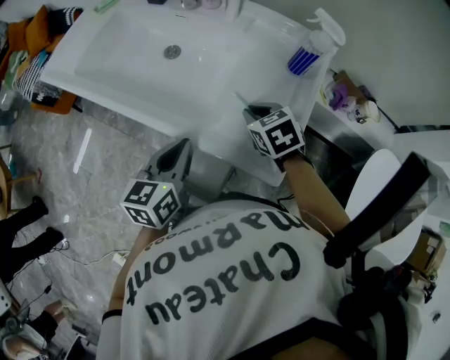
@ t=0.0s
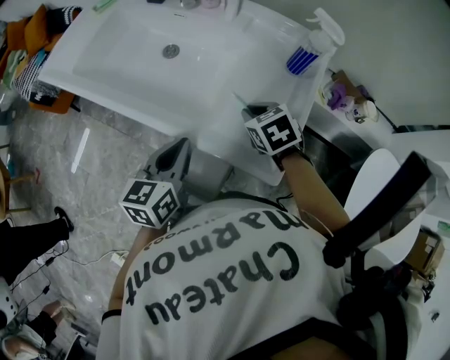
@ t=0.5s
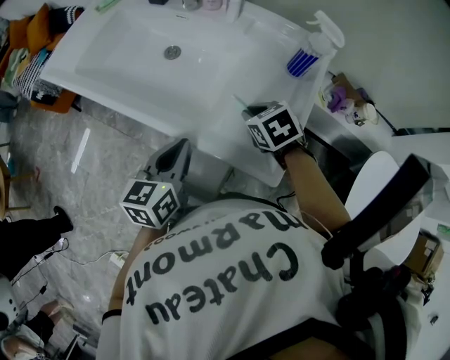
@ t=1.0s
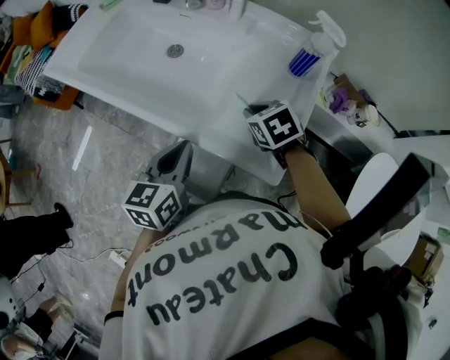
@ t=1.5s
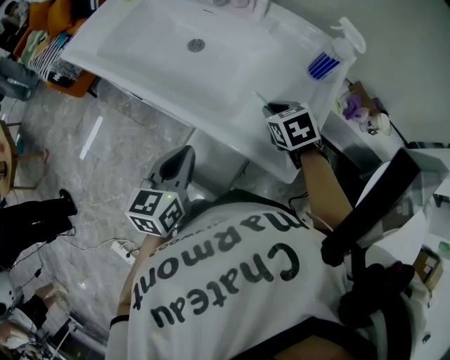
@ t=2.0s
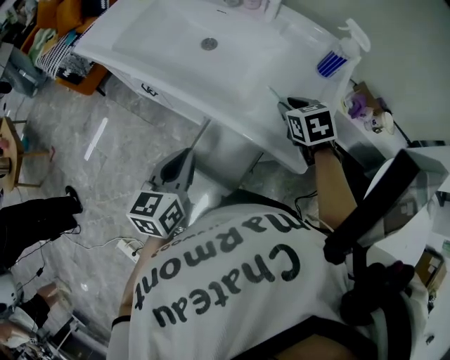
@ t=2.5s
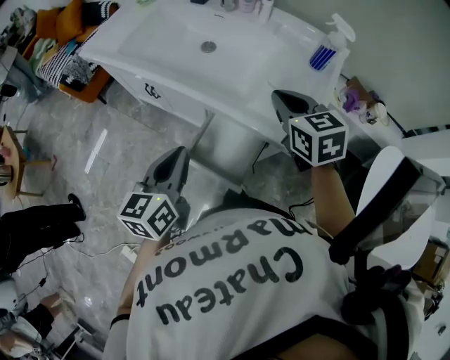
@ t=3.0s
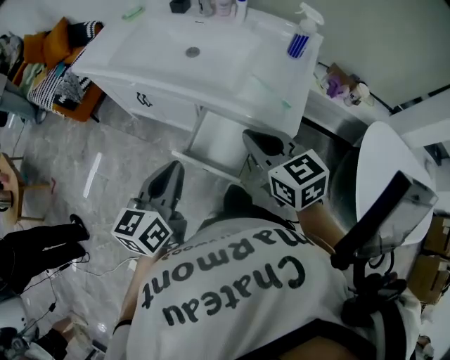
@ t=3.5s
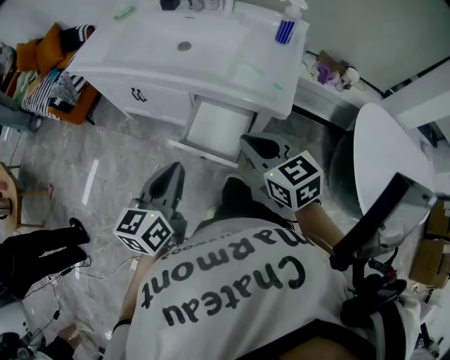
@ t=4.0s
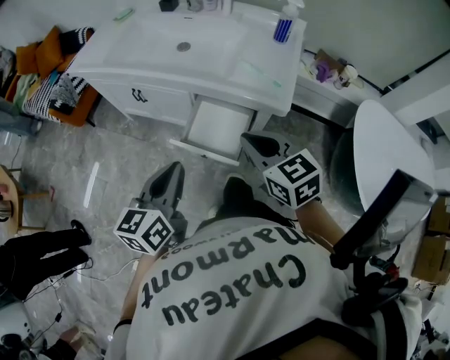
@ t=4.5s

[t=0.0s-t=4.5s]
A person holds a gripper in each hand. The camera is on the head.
t=0.0s to t=2.0s: The left gripper moves roughly 5 cm.
t=2.0s to t=4.5s: The left gripper travels backward and to the left by about 20 cm. Meanwhile the right gripper is displaced backward, upward and to the left by some 35 cm, and swivels roughly 30 degrees.

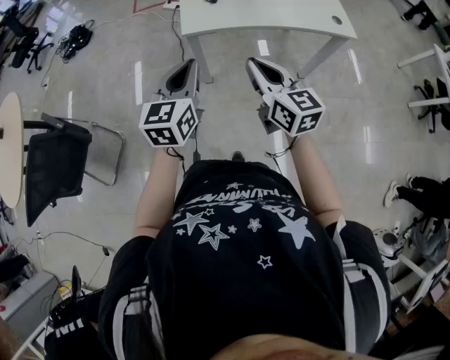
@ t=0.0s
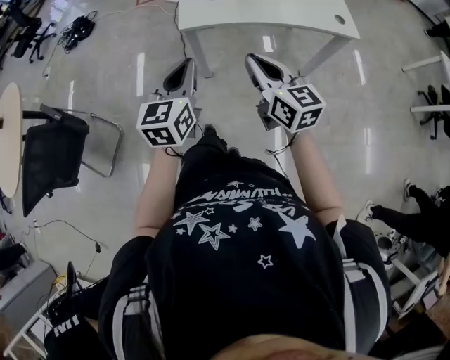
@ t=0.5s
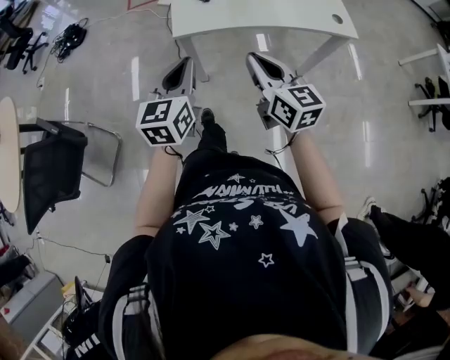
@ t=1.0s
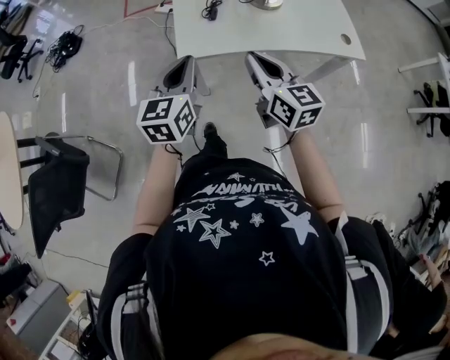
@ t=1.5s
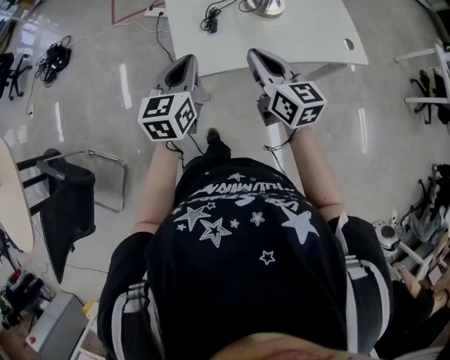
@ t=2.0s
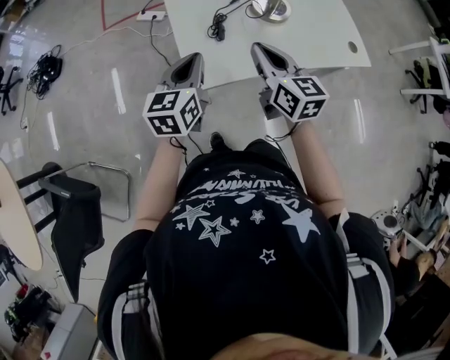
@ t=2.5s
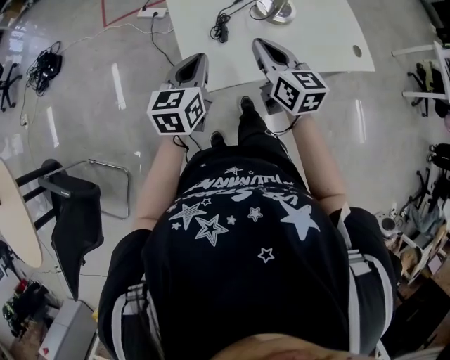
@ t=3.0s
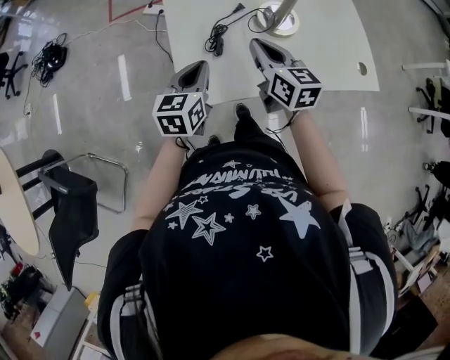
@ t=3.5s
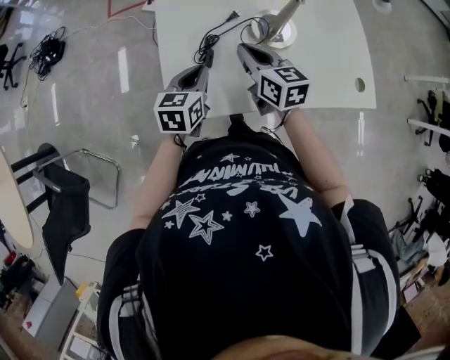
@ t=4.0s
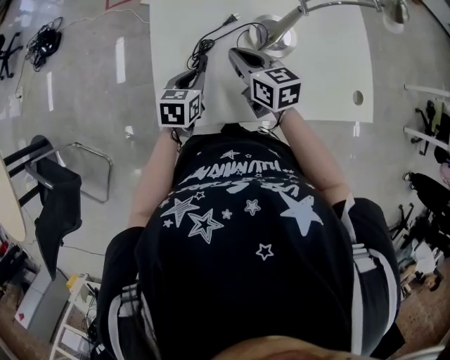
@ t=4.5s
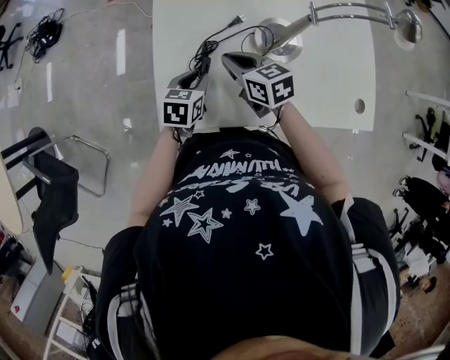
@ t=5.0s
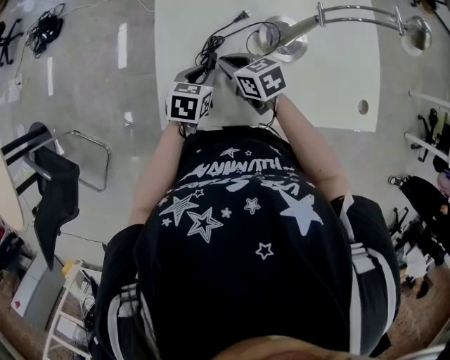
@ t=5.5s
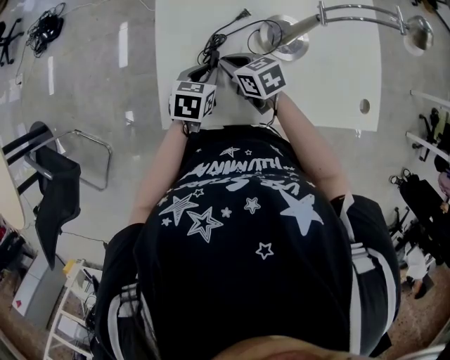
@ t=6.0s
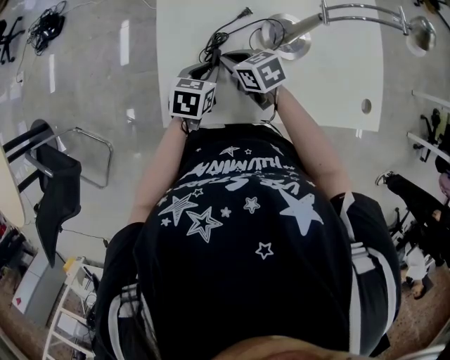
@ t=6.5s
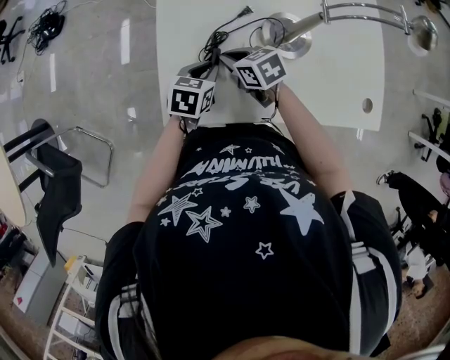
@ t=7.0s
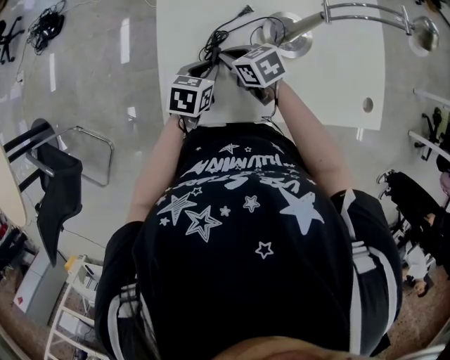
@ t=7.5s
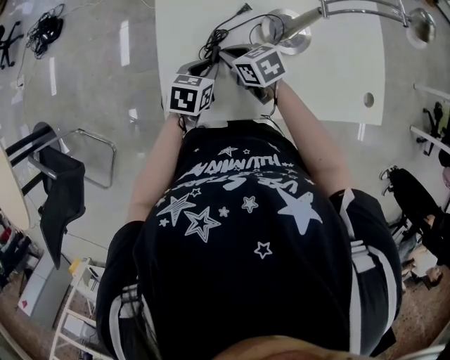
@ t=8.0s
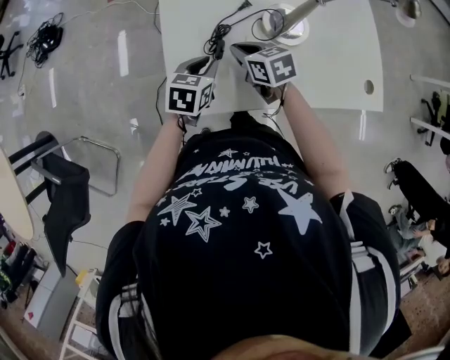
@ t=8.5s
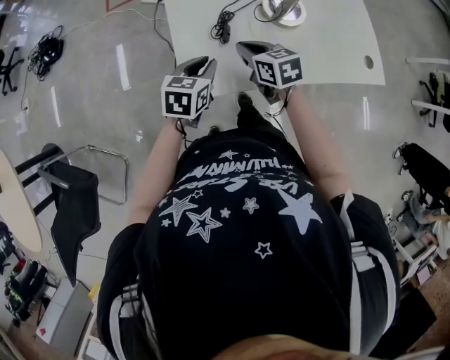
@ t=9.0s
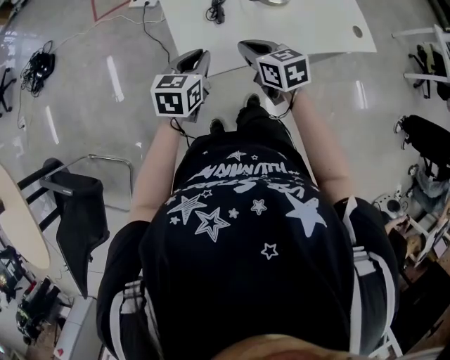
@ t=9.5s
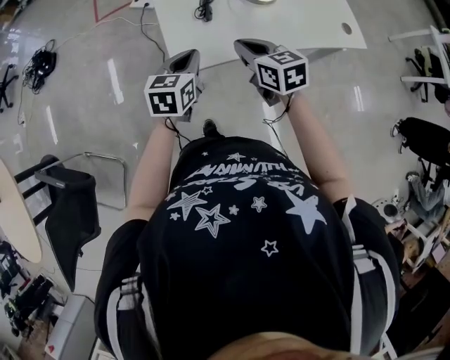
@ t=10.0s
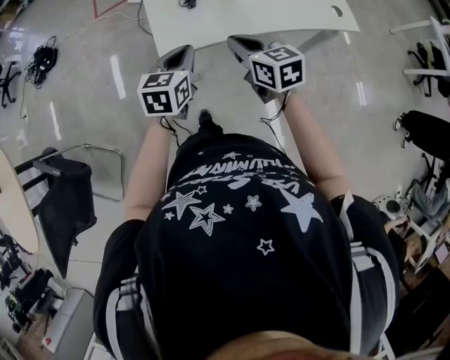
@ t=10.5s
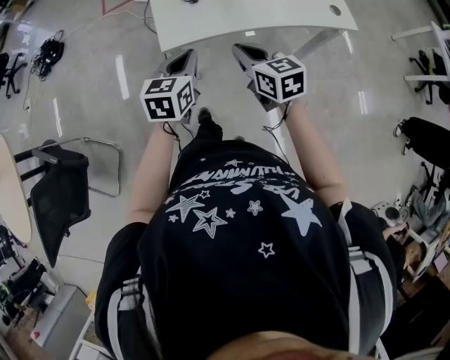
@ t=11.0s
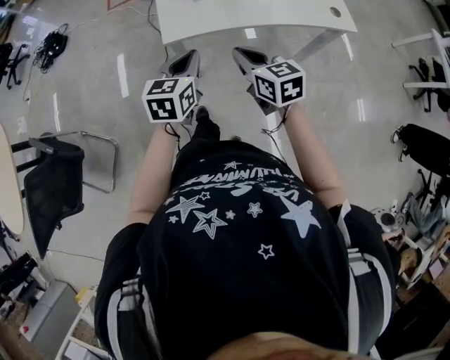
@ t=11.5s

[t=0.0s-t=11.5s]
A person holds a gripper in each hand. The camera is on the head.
t=0.0s to t=2.0s: The grippers both shift forward by about 25 cm.
t=2.0s to t=4.0s: The left gripper is displaced forward and downward by about 20 cm. Meanwhile the right gripper goes roughly 20 cm forward.
t=4.0s to t=6.0s: The two grippers go about 10 cm downward. The right gripper swivels about 30 degrees.
t=6.0s to t=7.5s: The grippers make only small movements.
t=7.5s to t=9.5s: The left gripper heads backward, to the left and upward, covering roughly 20 cm, and turns by about 20 degrees. The right gripper shifts roughly 20 cm backward and upward, and turns by some 30 degrees.
t=9.5s to t=11.5s: Both grippers move backward, some 20 cm.

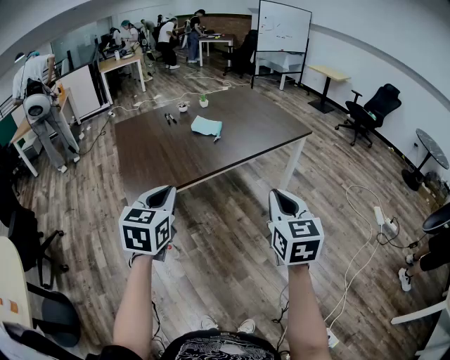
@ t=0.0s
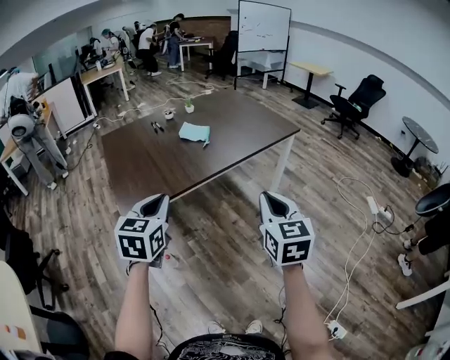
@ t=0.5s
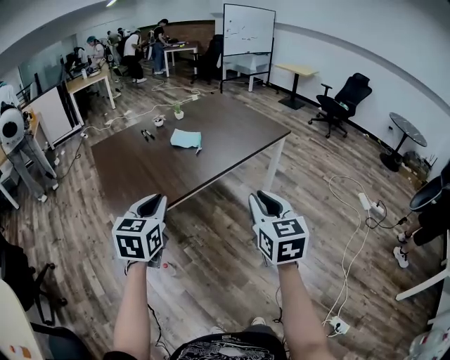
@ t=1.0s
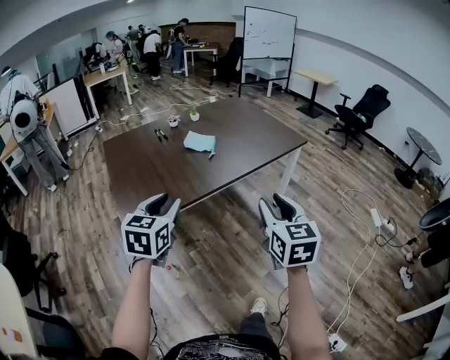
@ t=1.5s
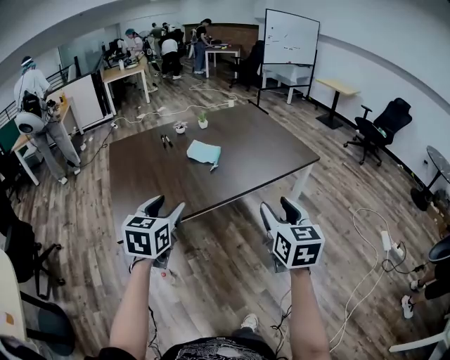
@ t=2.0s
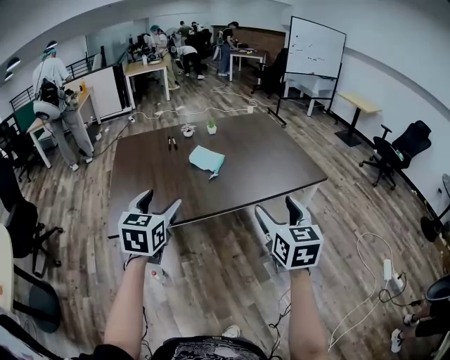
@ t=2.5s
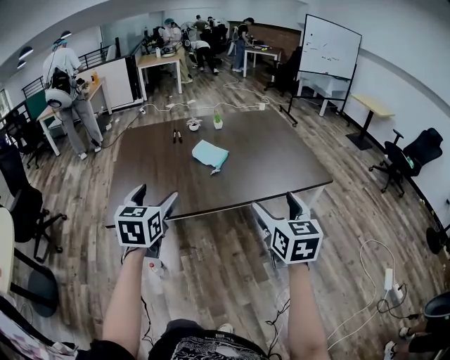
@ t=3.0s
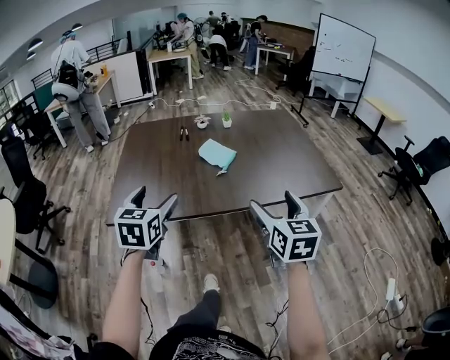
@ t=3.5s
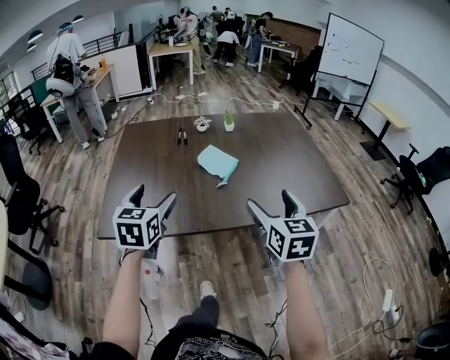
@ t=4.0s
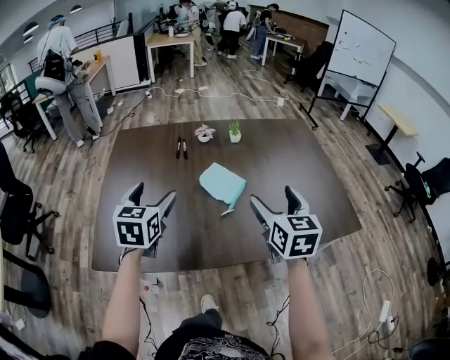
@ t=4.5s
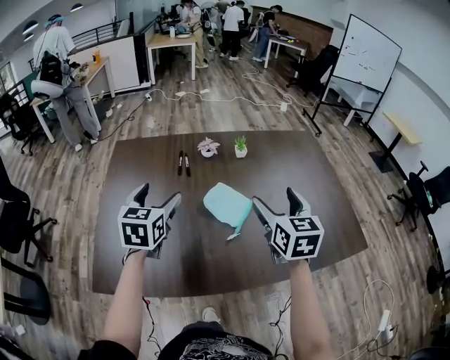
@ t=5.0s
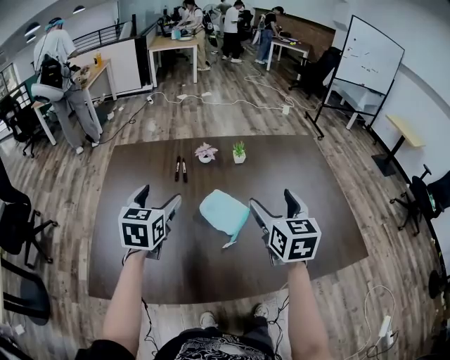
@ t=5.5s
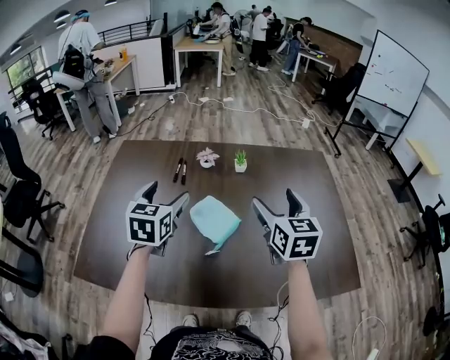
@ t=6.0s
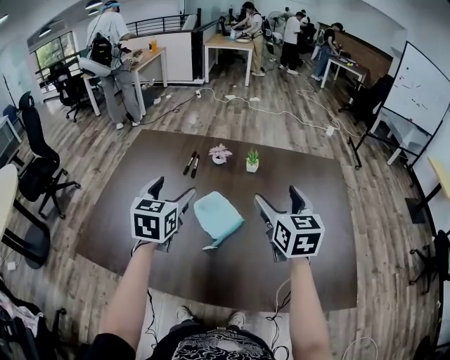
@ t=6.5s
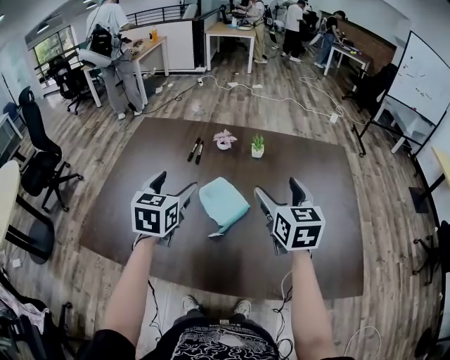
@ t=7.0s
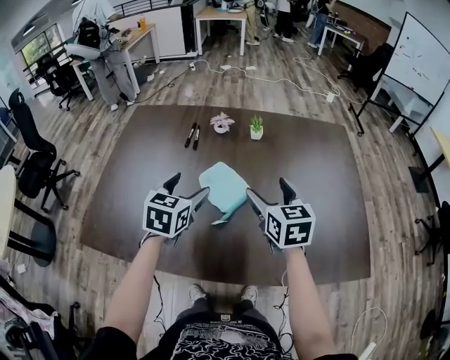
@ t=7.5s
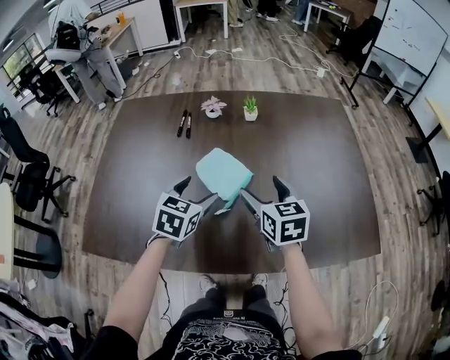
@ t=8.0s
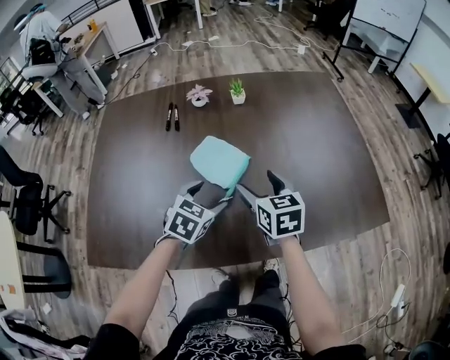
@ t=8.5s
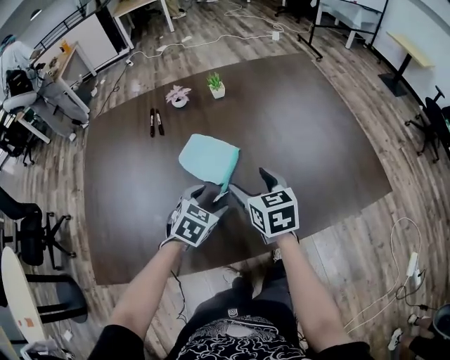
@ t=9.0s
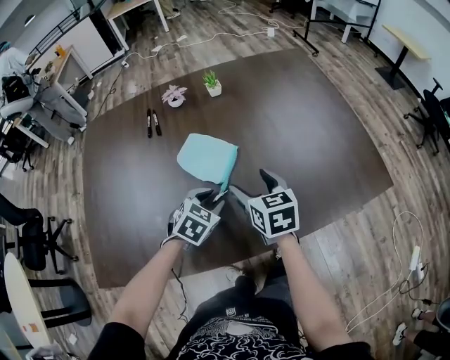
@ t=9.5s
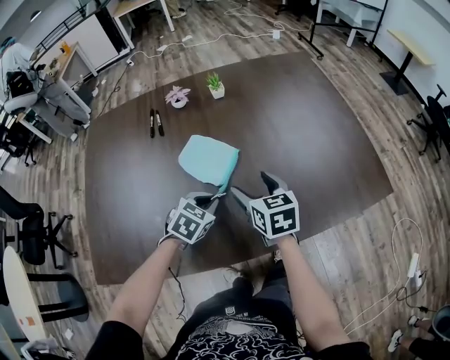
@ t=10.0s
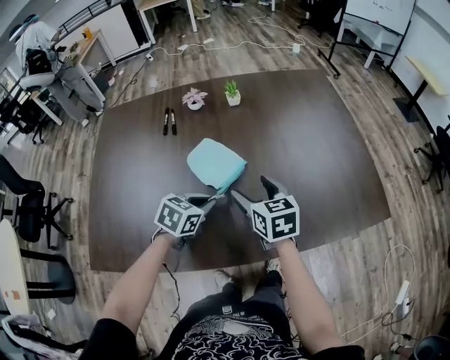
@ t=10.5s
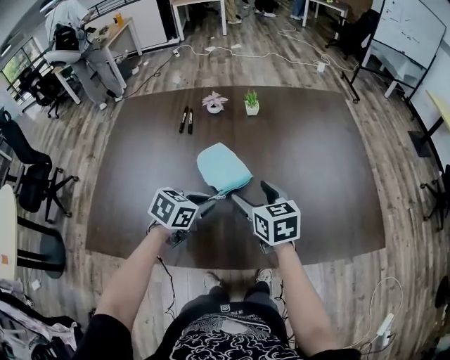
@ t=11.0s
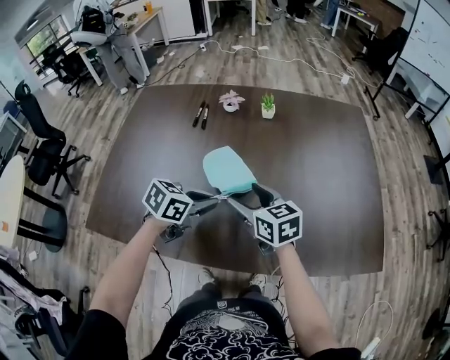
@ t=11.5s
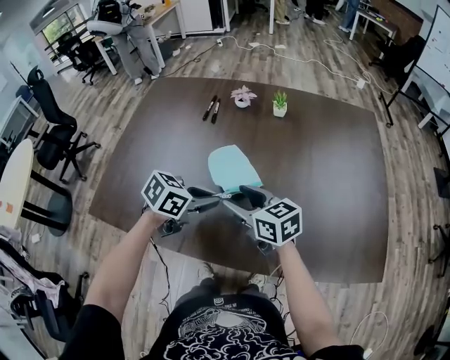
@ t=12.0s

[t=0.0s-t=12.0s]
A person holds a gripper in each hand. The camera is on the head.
t=0.0s to t=2.0s: Both grippers travel together forward, roughly 15 cm. The left gripper opens its fingers. Meanwhile the right gripper opens.
t=2.0s to t=4.0s: The right gripper travels forward by some 25 cm, and opens, while the left gripper moves forward, about 15 cm, swivels about 20 degrees, and opens.
t=4.0s to t=6.0s: Both grippers travel together forward, roughly 35 cm.
t=6.0s to t=8.0s: The right gripper travels downward by some 15 cm; the left gripper shifts some 15 cm downward, backward and to the right, and rotates about 20 degrees.
t=8.0s to t=10.0s: The left gripper is displaced downward and to the right by some 15 cm, rotates approximately 30 degrees, and closes, while the right gripper shifts about 5 cm downward.
t=10.0s to t=12.0s: The right gripper is displaced to the left by approximately 10 cm, and rotates roughly 50 degrees. The left gripper heads upward, covering some 10 cm, and changes its angle by about 30 degrees.
